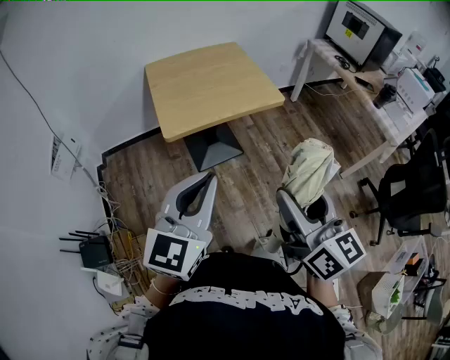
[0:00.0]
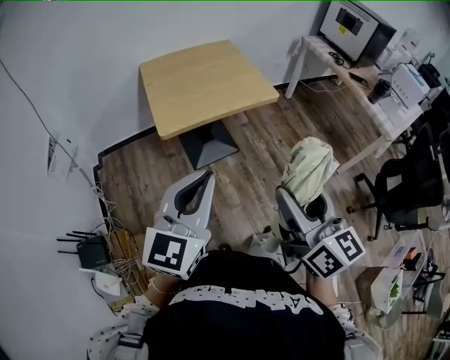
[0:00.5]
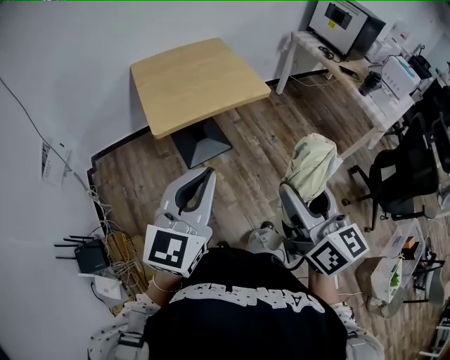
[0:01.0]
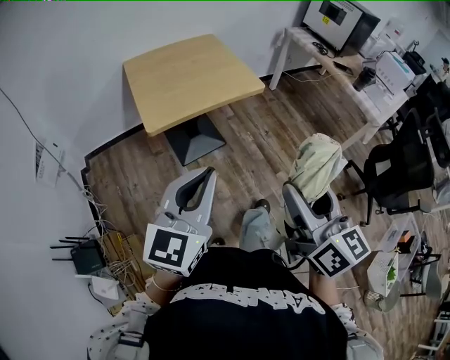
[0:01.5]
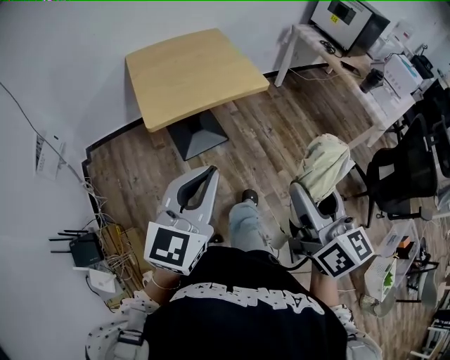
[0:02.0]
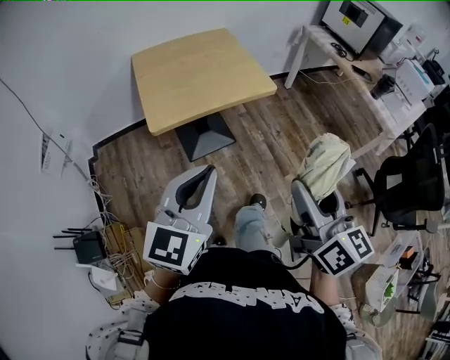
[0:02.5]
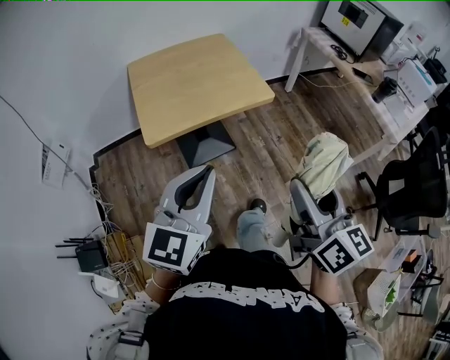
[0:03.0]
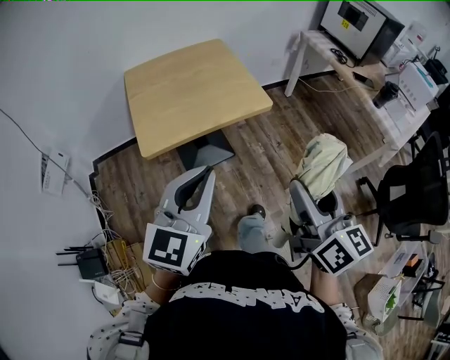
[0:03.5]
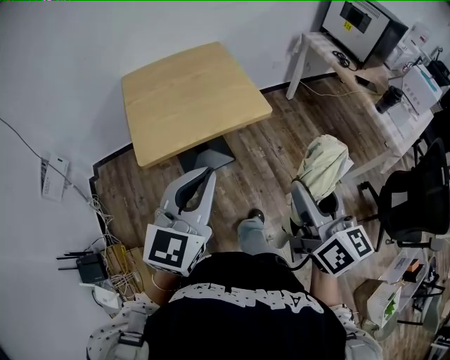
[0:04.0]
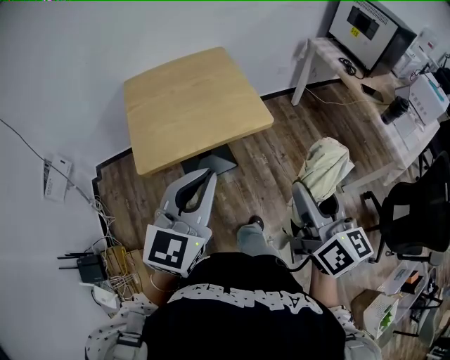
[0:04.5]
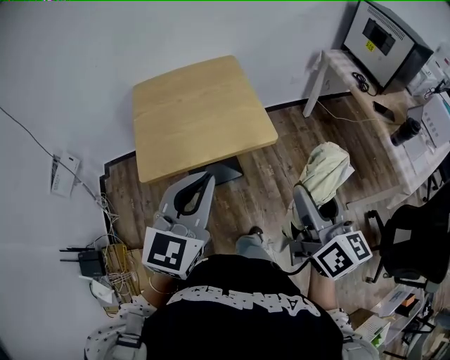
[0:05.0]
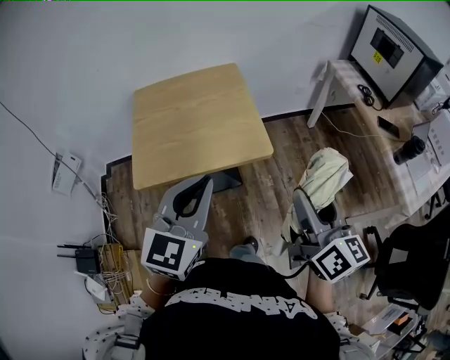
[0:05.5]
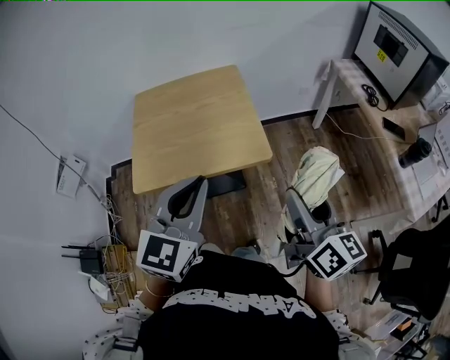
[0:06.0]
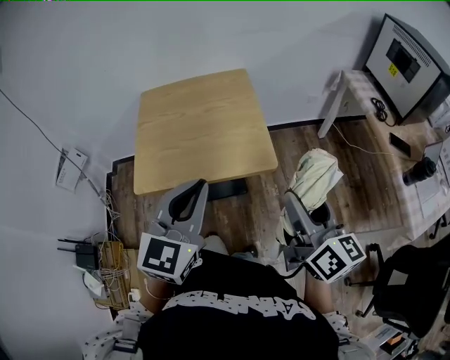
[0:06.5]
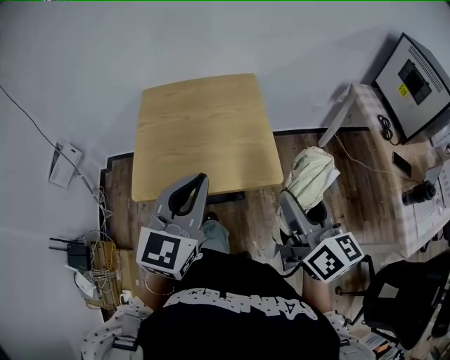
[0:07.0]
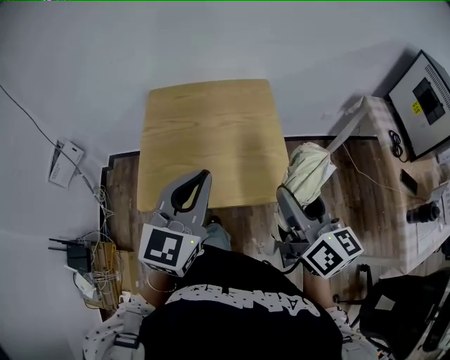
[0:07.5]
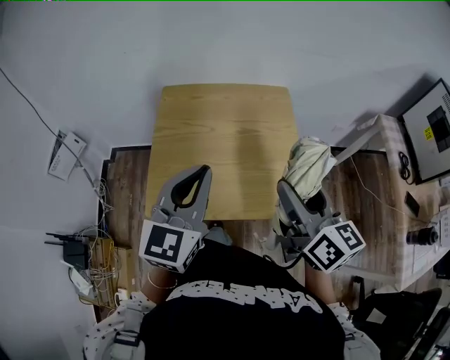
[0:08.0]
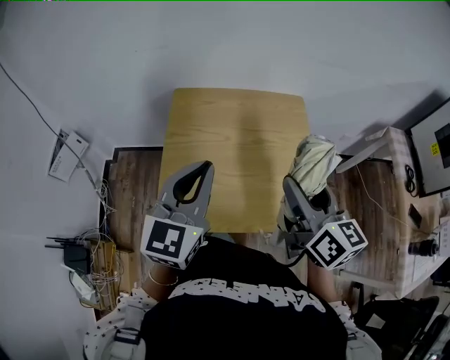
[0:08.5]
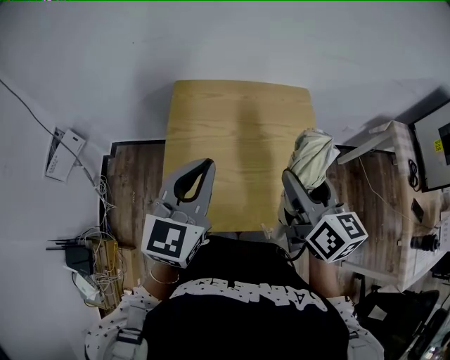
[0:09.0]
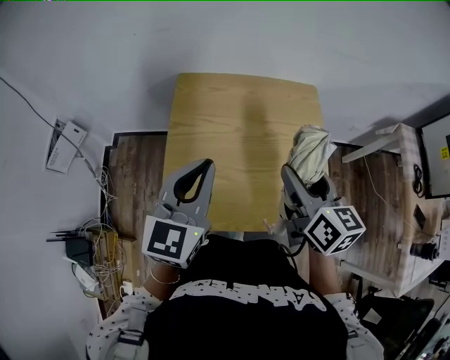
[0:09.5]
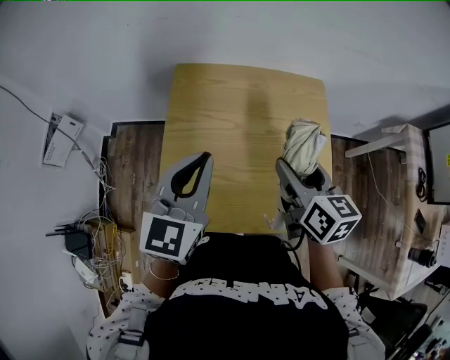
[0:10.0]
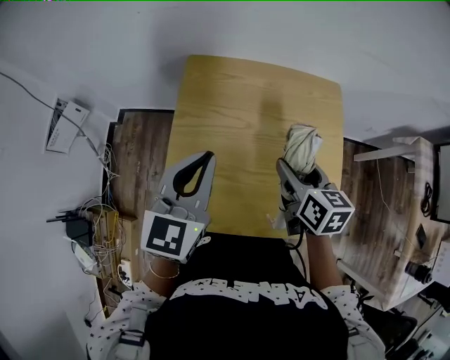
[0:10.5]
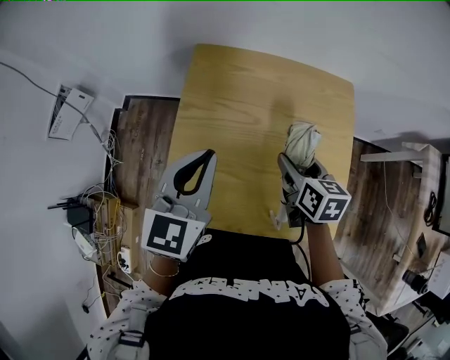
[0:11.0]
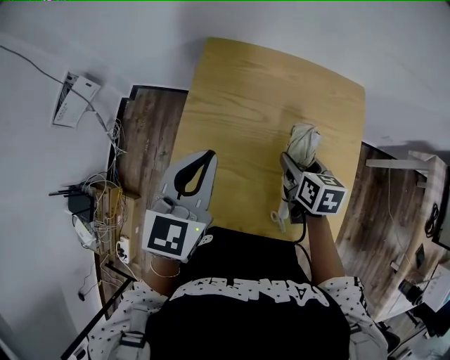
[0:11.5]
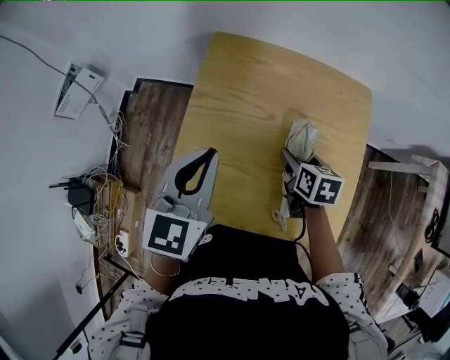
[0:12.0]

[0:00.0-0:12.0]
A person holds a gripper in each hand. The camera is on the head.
0:00.0 to 0:02.0: The right gripper is displaced to the right by some 5 cm.
0:02.0 to 0:04.0: Both grippers move forward, about 15 cm.
0:04.0 to 0:06.0: Both grippers travel together forward and to the right, approximately 20 cm.
0:06.0 to 0:08.0: Both grippers move forward and to the left, approximately 25 cm.
0:08.0 to 0:10.0: The right gripper shifts some 20 cm forward, downward and to the left. The left gripper moves forward, to the left and downward, approximately 15 cm.
0:10.0 to 0:12.0: The left gripper heads downward, covering some 5 cm, while the right gripper goes about 20 cm downward, and changes its angle by some 30 degrees.

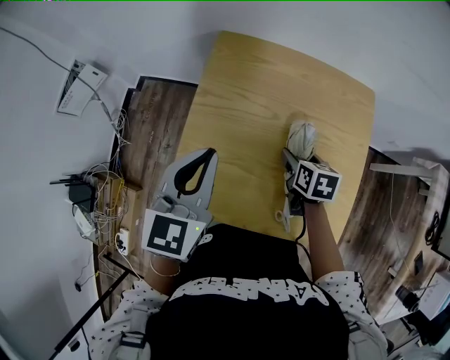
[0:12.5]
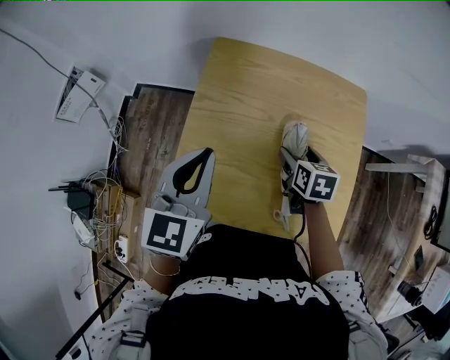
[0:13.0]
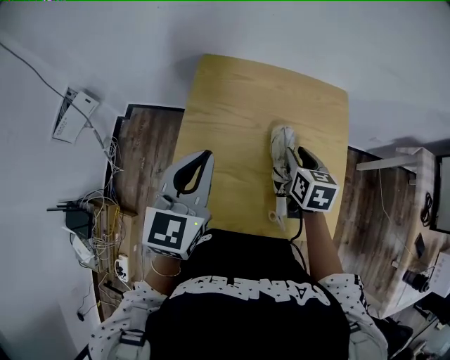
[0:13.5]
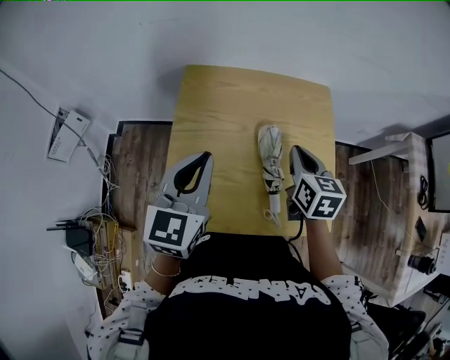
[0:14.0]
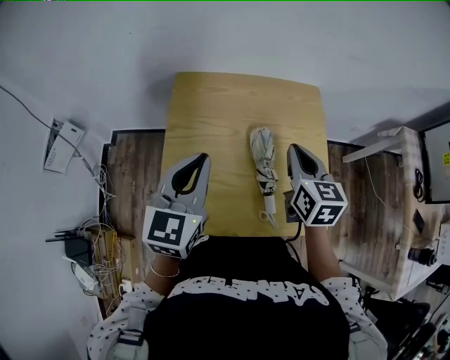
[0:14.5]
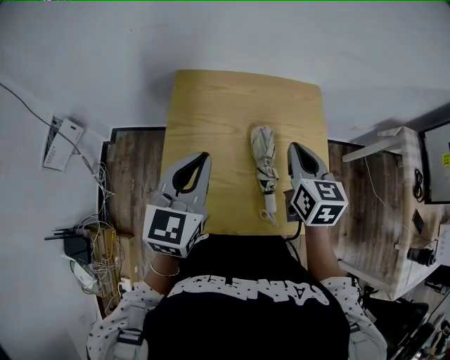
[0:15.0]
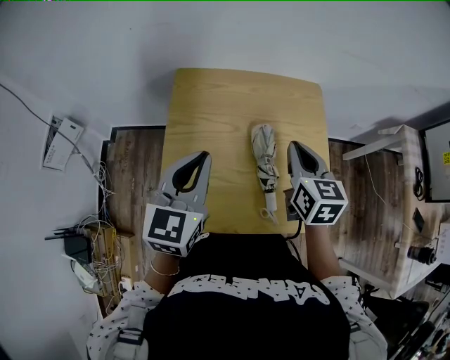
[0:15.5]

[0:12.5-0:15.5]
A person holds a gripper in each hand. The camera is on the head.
0:12.5 to 0:14.0: The right gripper shifts approximately 15 cm upward, swivels approximately 30 degrees, and closes its fingers; the left gripper shifts by roughly 5 cm.
0:14.0 to 0:15.5: The grippers stay close to where they were, moving slightly.

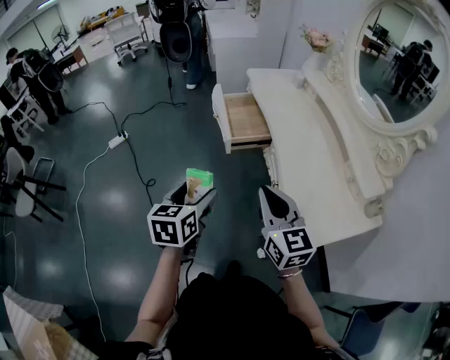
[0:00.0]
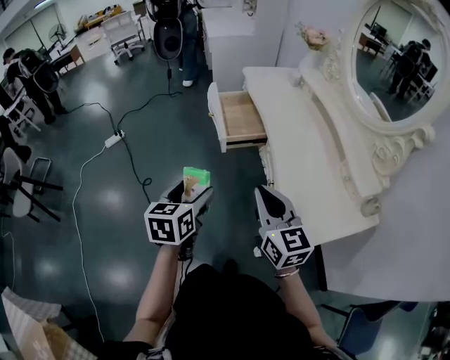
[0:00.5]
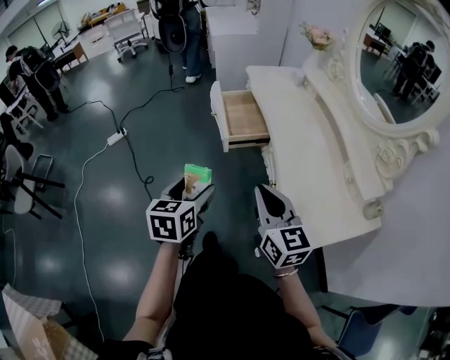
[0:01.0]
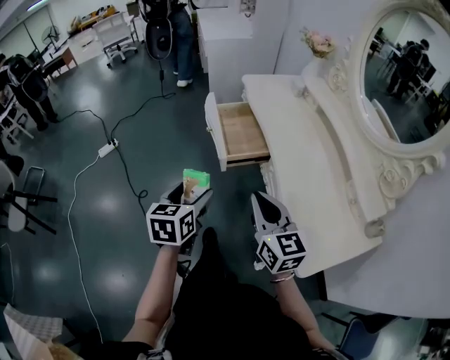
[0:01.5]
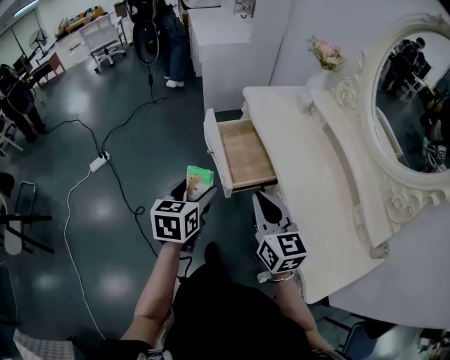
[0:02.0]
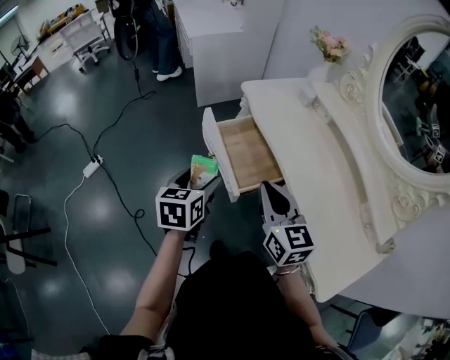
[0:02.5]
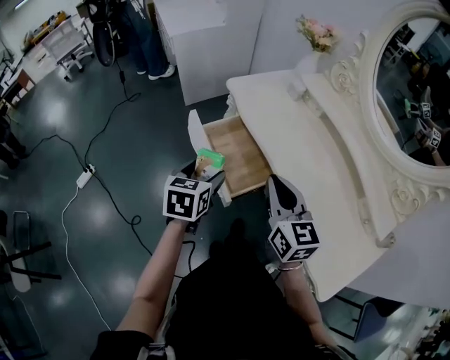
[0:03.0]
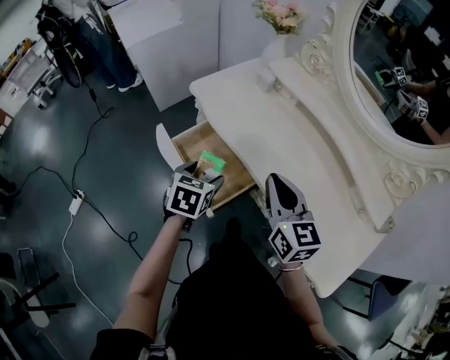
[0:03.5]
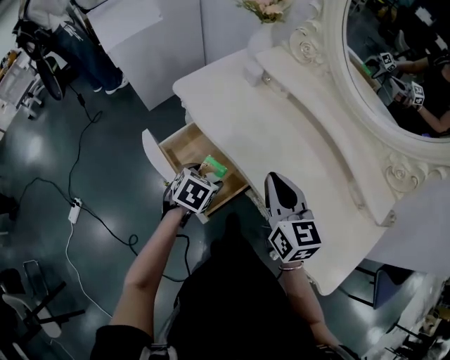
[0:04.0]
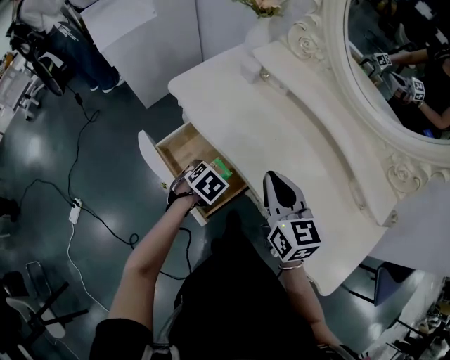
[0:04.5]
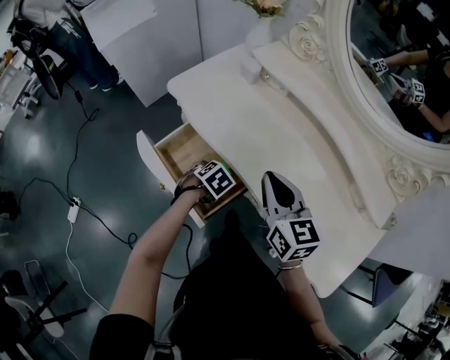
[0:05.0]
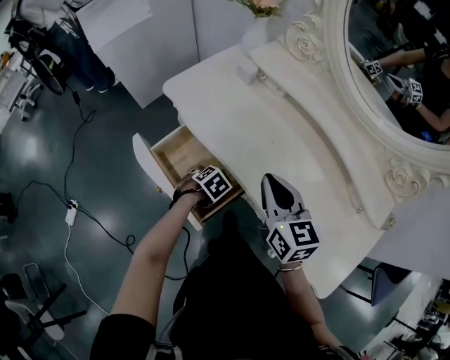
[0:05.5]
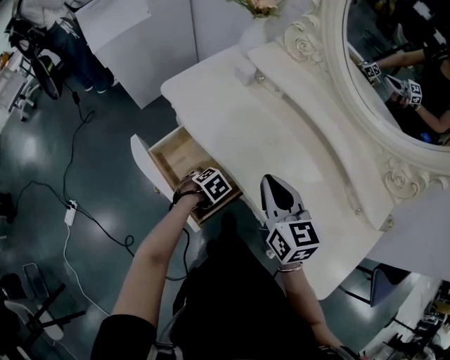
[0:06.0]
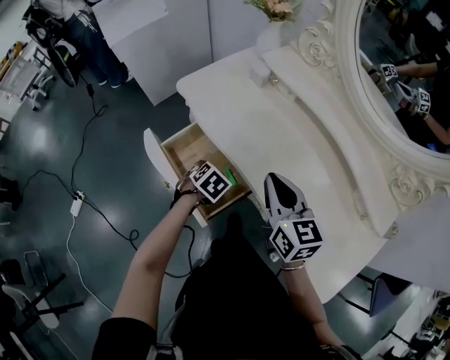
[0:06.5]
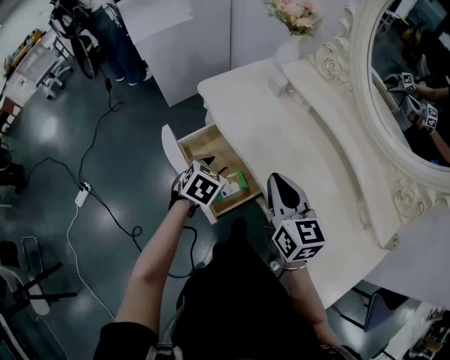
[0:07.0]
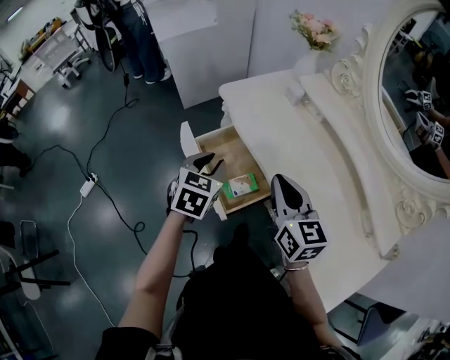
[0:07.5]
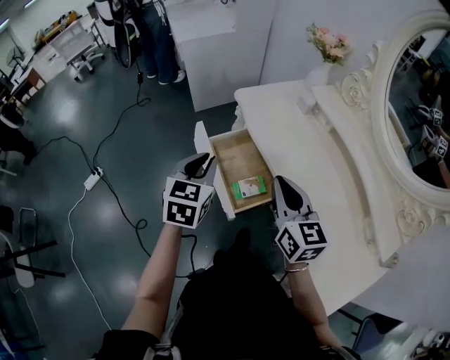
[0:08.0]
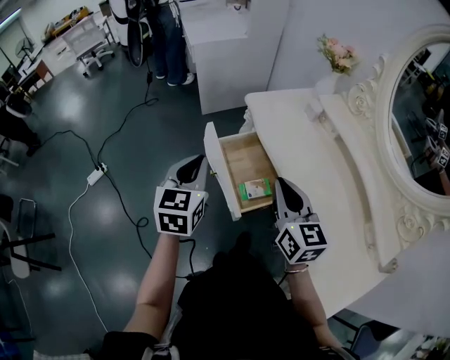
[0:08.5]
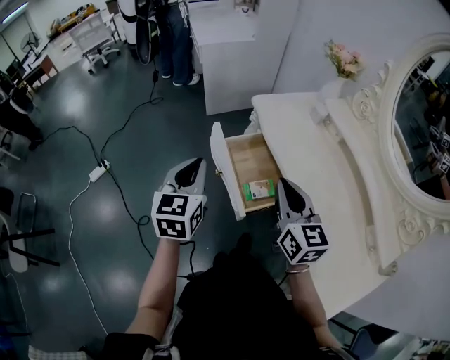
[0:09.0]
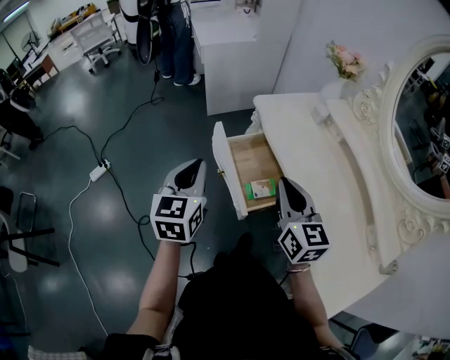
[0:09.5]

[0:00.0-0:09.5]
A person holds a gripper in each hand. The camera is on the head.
0:00.0 to 0:02.0: The grippers both shift forward by approximately 25 cm.
0:02.0 to 0:04.0: The left gripper moves roughly 30 cm, and changes its angle by some 50 degrees; the right gripper moves roughly 20 cm, and turns by roughly 30 degrees.
0:04.0 to 0:05.5: The left gripper travels downward by about 15 cm, and rotates some 30 degrees.
0:05.5 to 0:07.5: The right gripper changes place by some 10 cm, while the left gripper moves upward, about 25 cm, tips its fingers upward by about 40 degrees, and closes its fingers.
0:07.5 to 0:09.5: The left gripper shifts approximately 20 cm to the left, upward and backward, and turns by some 30 degrees, while the right gripper moves to the left, approximately 10 cm.

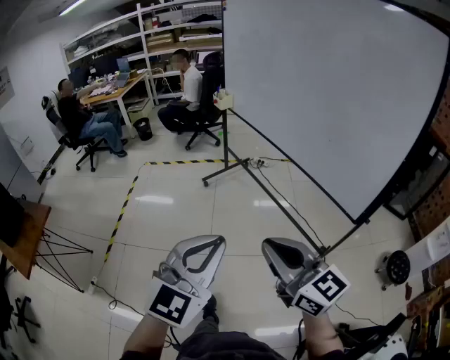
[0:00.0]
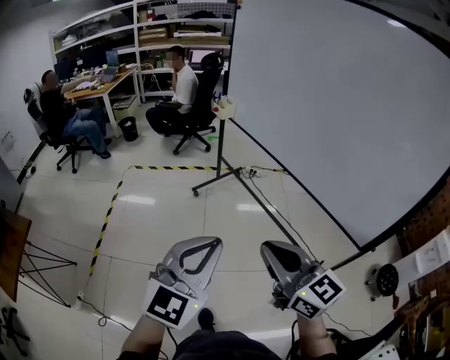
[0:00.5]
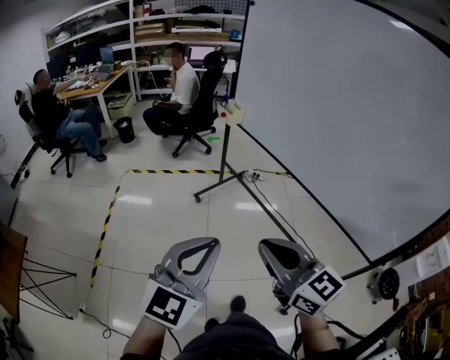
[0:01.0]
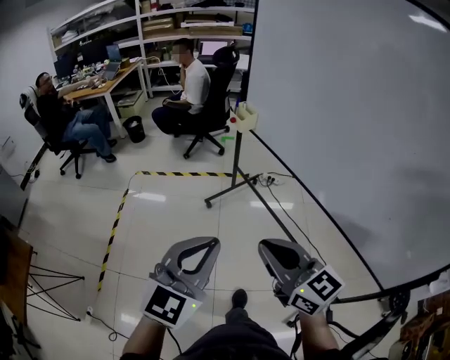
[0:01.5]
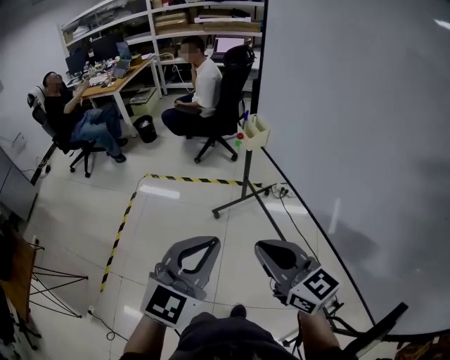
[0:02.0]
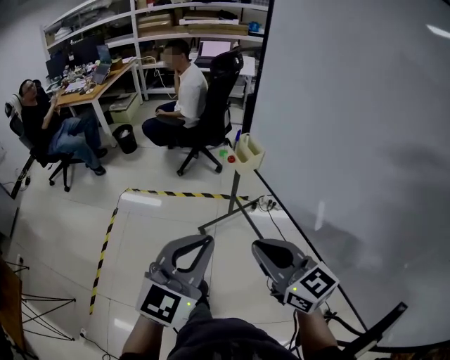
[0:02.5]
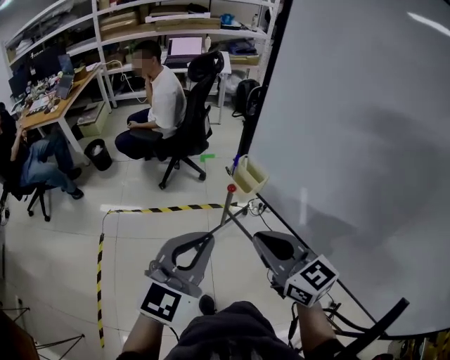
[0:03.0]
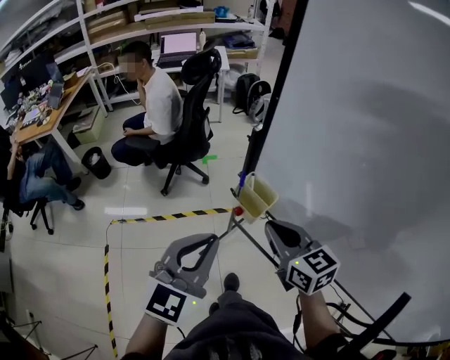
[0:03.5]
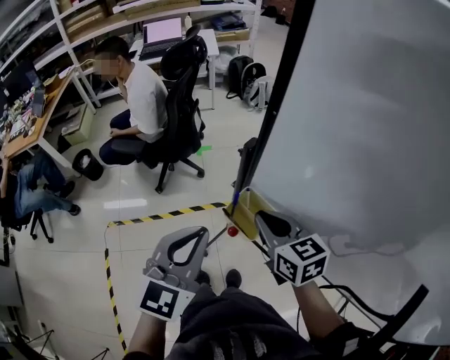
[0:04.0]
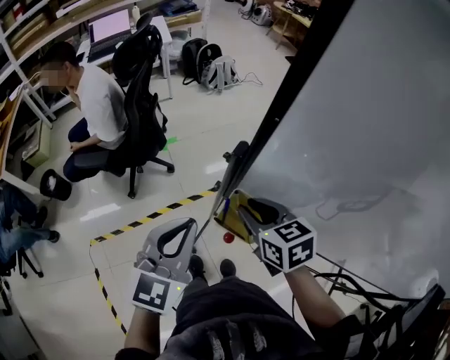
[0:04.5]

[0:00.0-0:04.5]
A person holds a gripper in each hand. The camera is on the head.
0:00.0 to 0:02.0: The pair of grippers is taken forward, some 50 cm.
0:02.0 to 0:04.5: The two grippers travel together, about 60 cm. The right gripper turns by about 50 degrees, and opens up, while the left gripper changes its angle by roughly 30 degrees.
